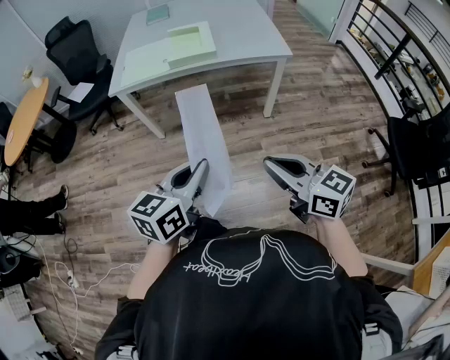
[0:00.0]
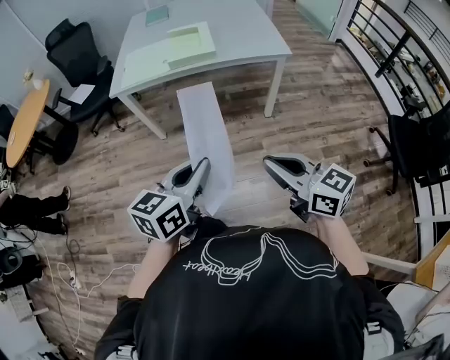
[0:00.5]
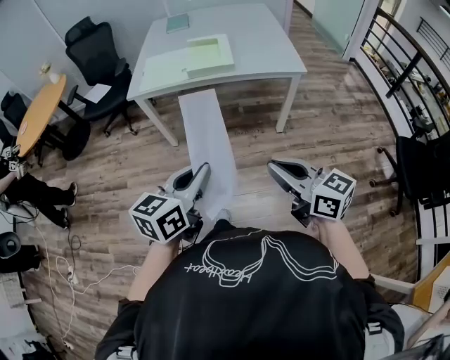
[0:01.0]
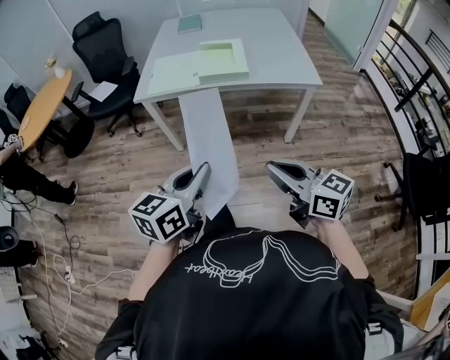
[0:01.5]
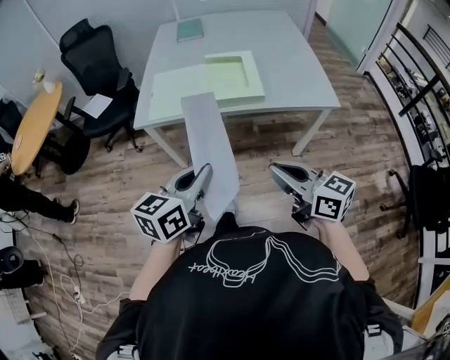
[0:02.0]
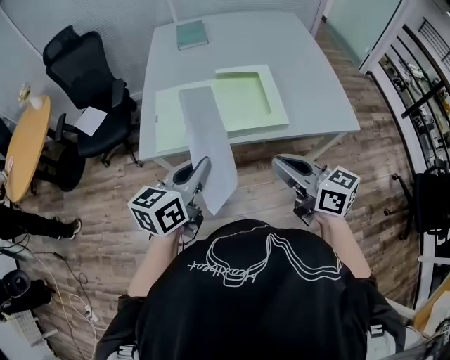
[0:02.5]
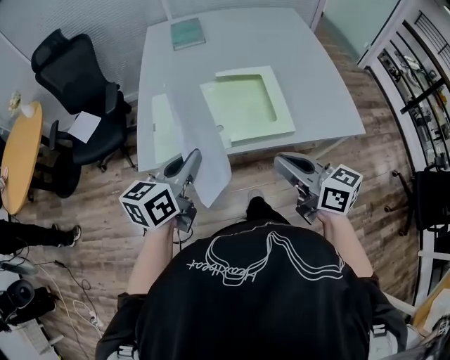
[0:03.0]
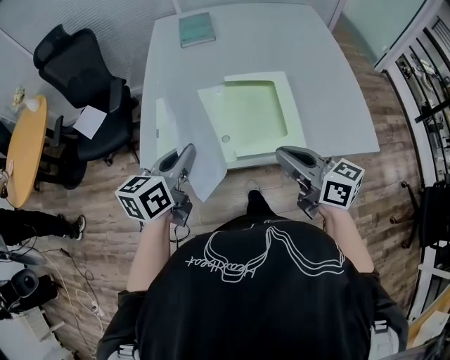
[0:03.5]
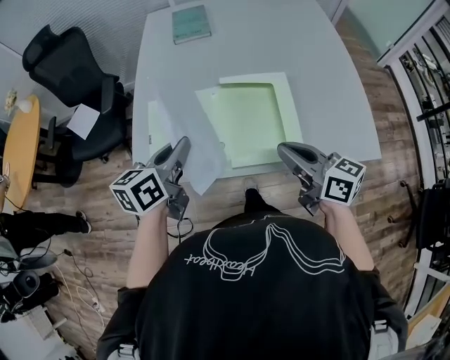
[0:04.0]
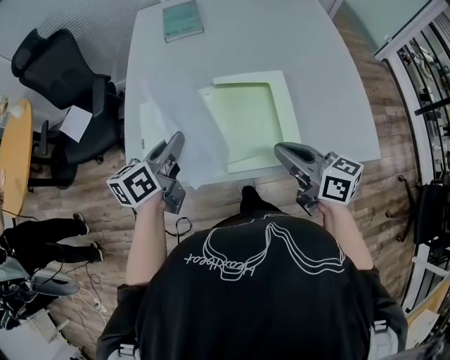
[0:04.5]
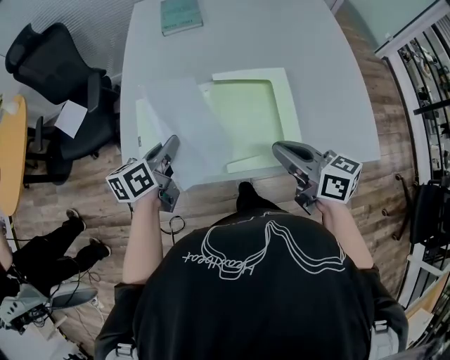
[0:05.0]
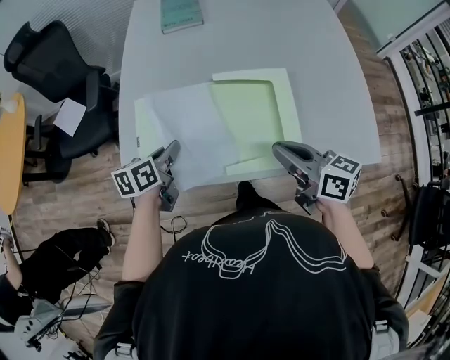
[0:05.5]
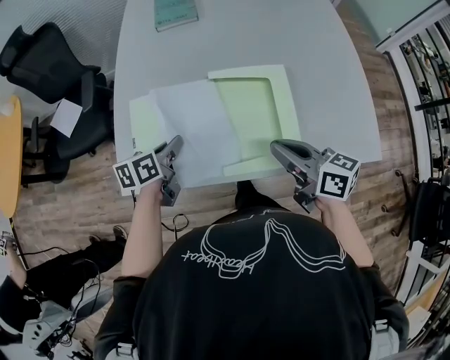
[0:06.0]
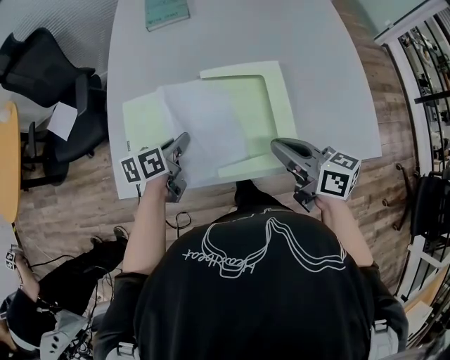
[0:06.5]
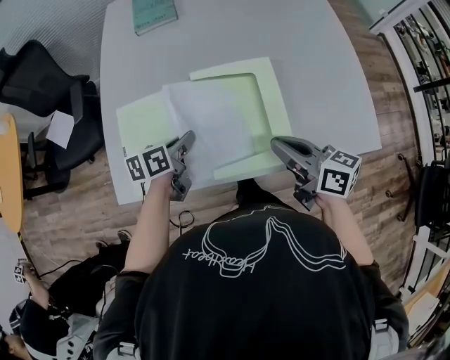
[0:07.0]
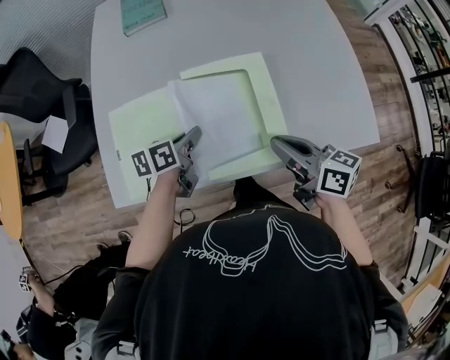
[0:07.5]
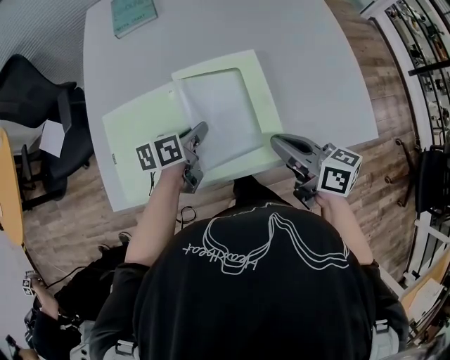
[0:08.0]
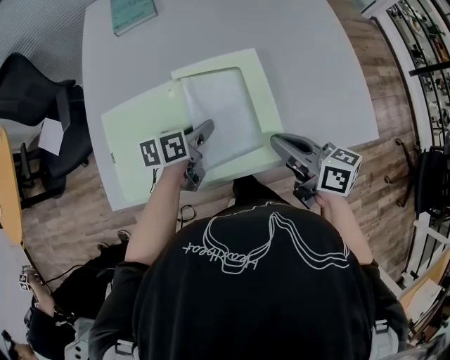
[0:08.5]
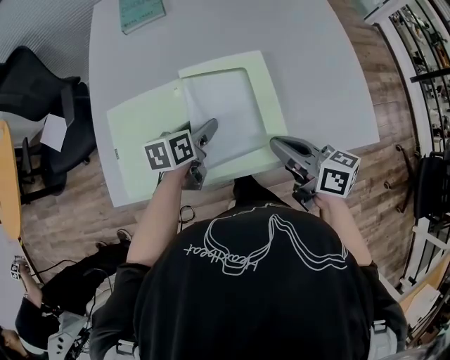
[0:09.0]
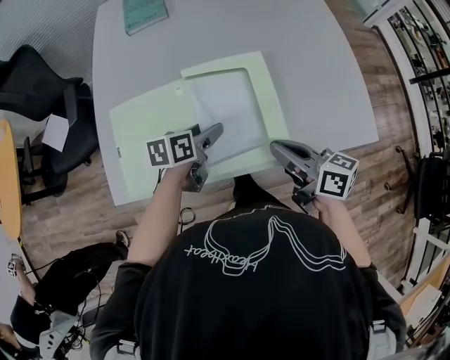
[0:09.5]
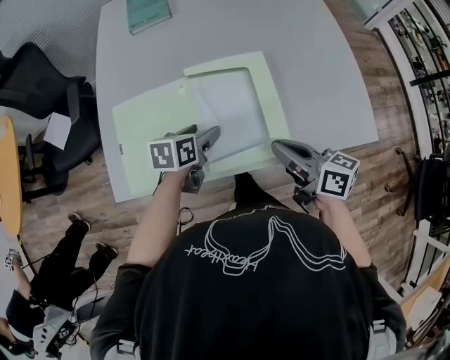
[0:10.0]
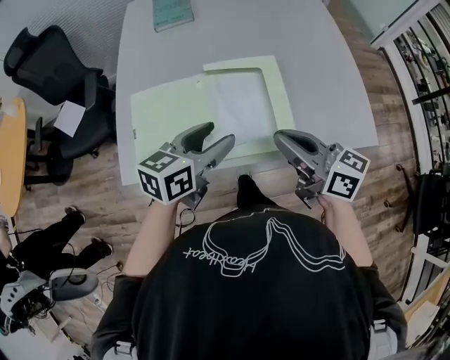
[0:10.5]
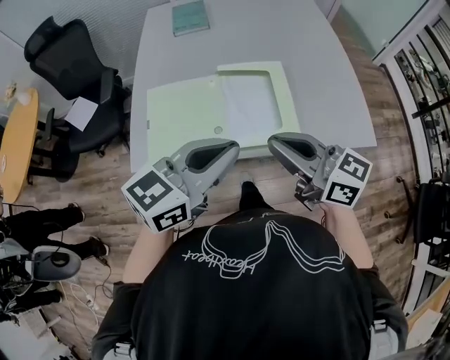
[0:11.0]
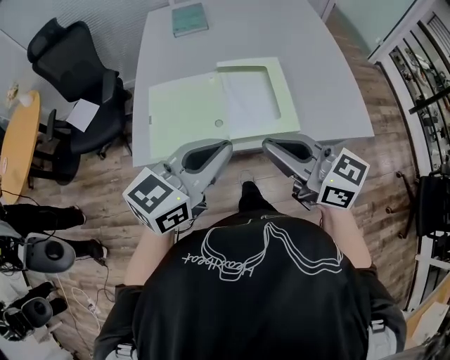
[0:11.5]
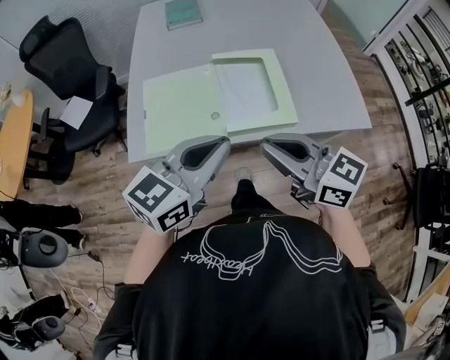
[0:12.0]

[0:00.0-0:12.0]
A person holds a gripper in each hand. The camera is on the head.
0:00.0 to 0:02.0: The right gripper shifts approximately 30 cm forward. The left gripper goes approximately 30 cm forward and to the left.
0:02.0 to 0:04.0: Both grippers move forward, roughly 40 cm.
0:04.0 to 0:06.0: The right gripper heads downward, covering some 5 cm. The left gripper travels downward and forward by some 15 cm.
0:06.0 to 0:08.0: The right gripper moves to the right, about 5 cm, while the left gripper is displaced to the right by about 15 cm.
0:08.0 to 0:10.0: The left gripper opens its fingers.
0:10.0 to 0:12.0: The right gripper moves backward, upward and to the left, approximately 25 cm, and rotates roughly 30 degrees. Meanwhile the left gripper moves upward and backward, about 35 cm, tilts its fingers roughly 30 degrees upward, and closes up.

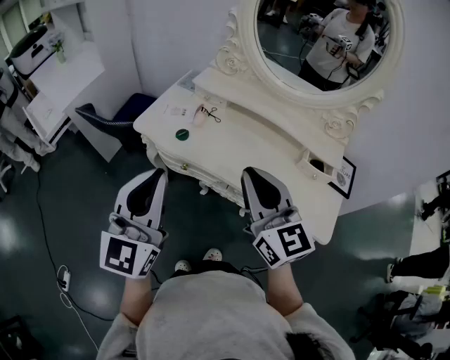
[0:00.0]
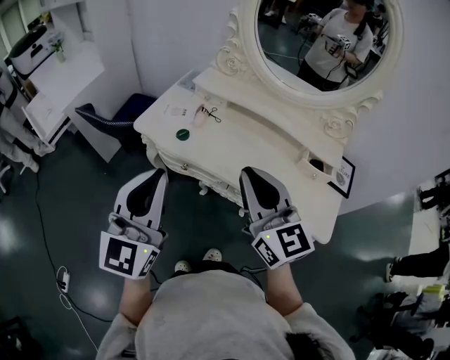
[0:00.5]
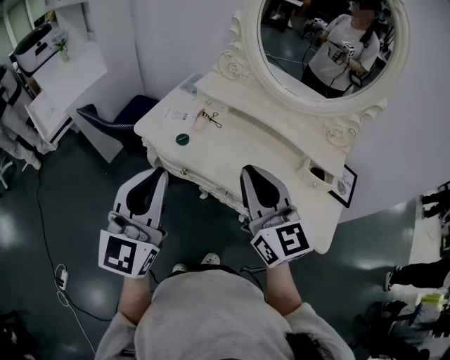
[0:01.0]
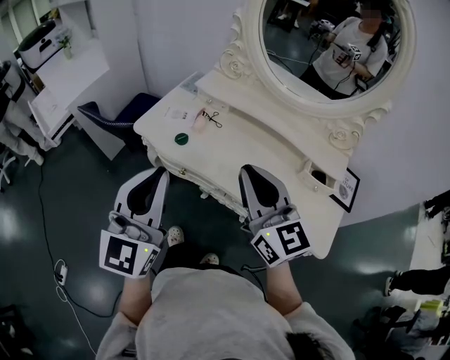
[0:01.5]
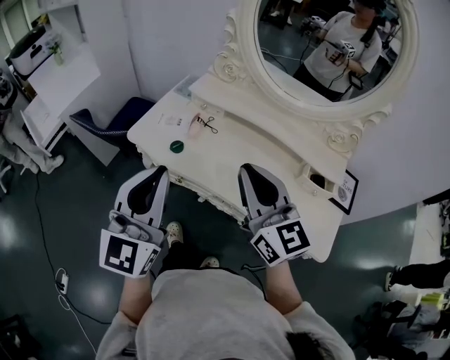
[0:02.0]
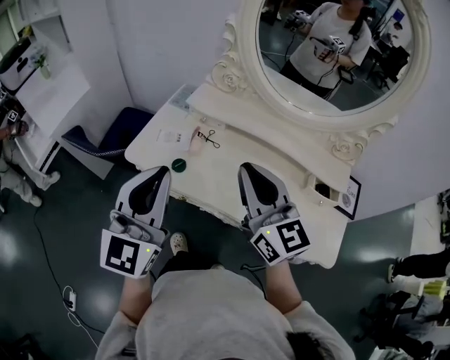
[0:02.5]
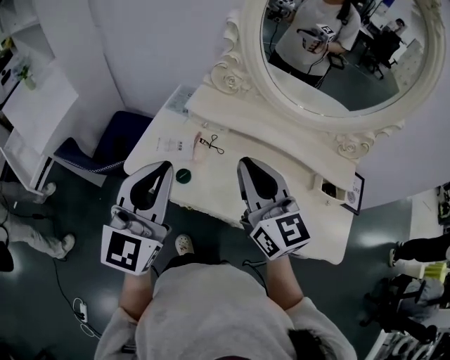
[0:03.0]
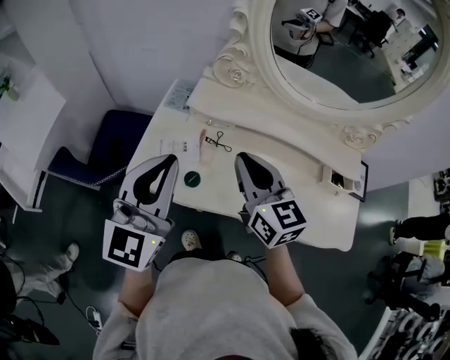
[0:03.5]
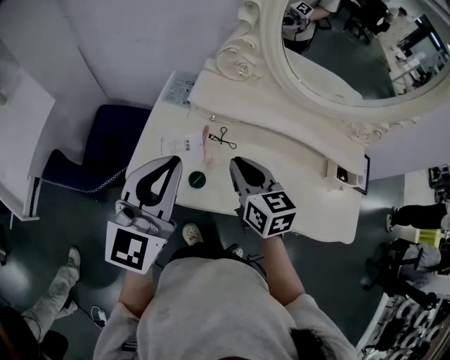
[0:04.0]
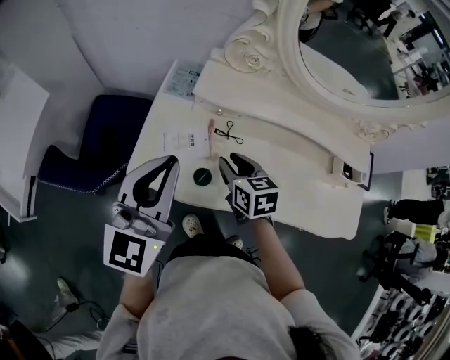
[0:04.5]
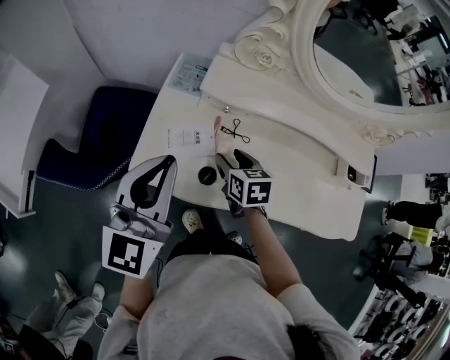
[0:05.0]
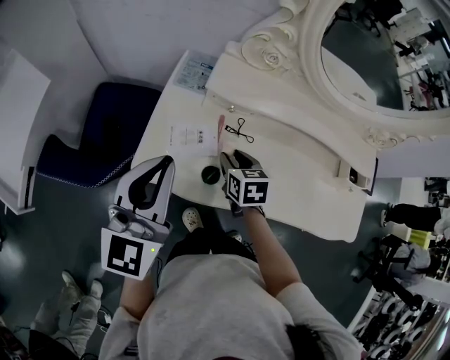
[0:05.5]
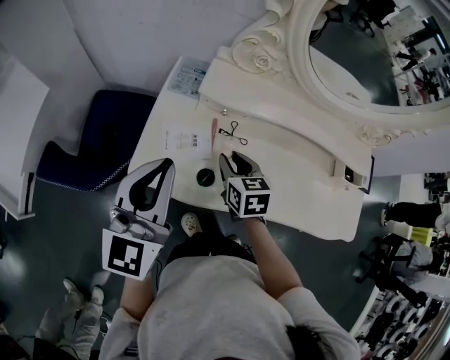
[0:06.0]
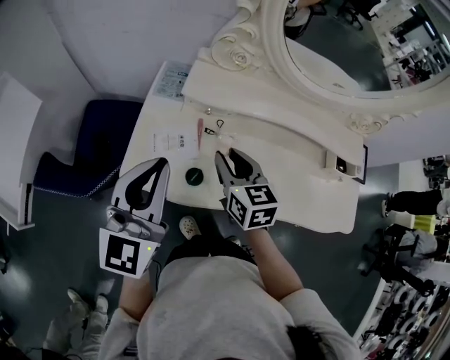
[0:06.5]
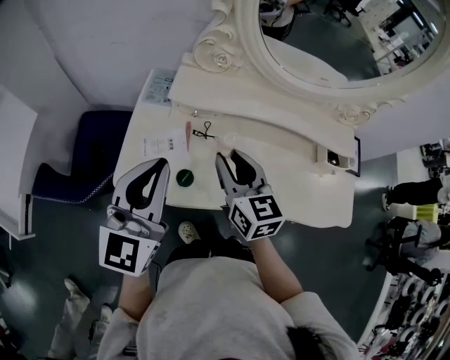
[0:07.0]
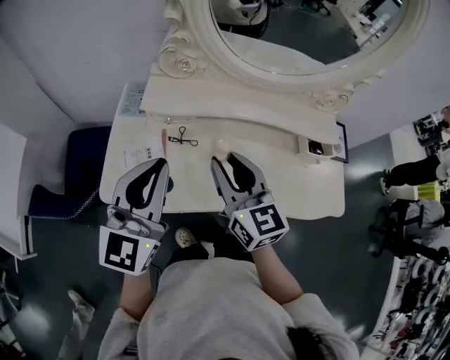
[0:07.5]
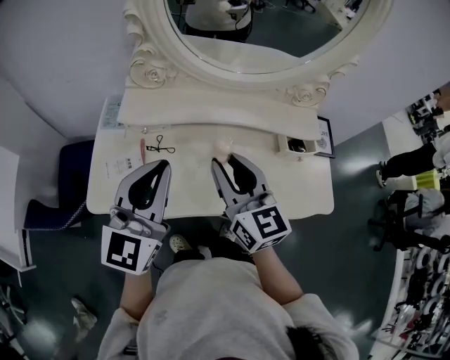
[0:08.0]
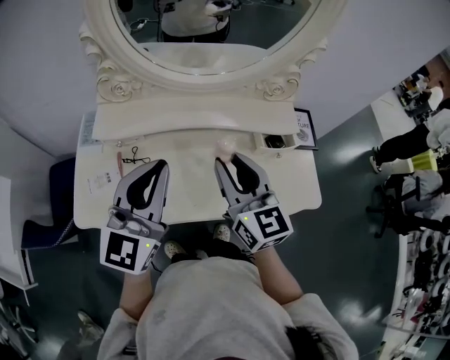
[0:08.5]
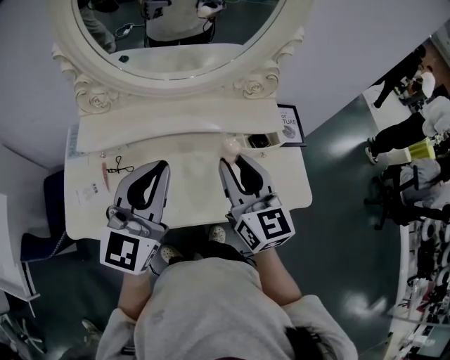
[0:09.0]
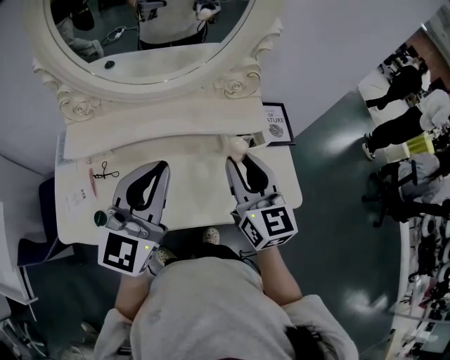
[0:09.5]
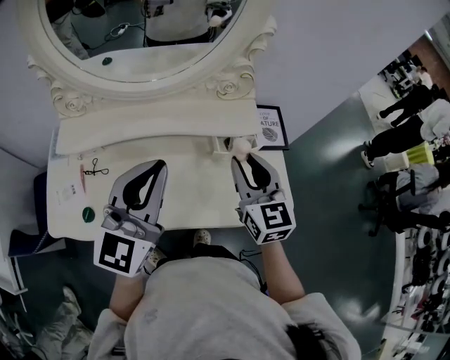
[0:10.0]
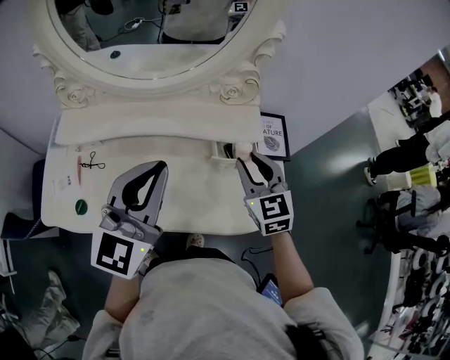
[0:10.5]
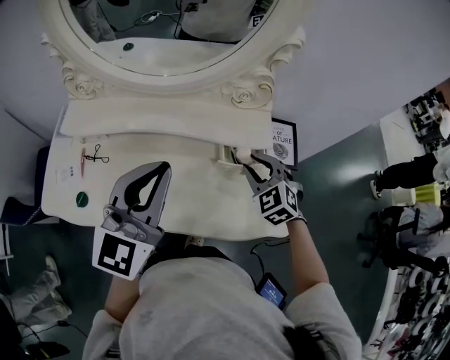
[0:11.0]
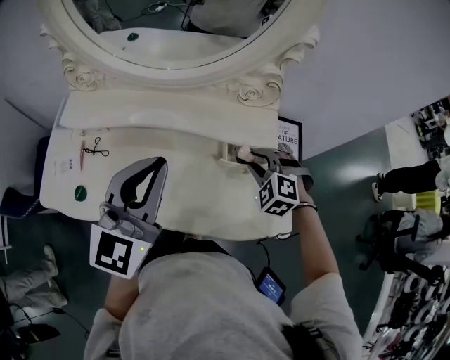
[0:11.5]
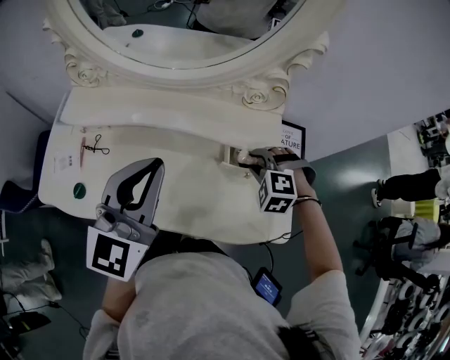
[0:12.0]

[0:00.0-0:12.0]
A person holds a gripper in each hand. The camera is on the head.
0:00.0 to 0:02.0: Both grippers travel together forward, approximately 5 cm.
0:02.0 to 0:04.0: The right gripper moves forward, downward and to the left, some 30 cm, and turns by approximately 40 degrees; the left gripper is displaced forward and to the left by about 25 cm, and swivels approximately 20 degrees.
0:04.0 to 0:06.0: The left gripper changes place by some 5 cm; the right gripper goes approximately 10 cm downward, and opens.
0:06.0 to 0:08.0: The left gripper moves to the right, some 20 cm. Meanwhile the right gripper is displaced upward and to the right by some 25 cm, and points its fingers roughly 30 degrees further upward.
0:08.0 to 0:10.0: The two grippers go some 25 cm to the right.
0:10.0 to 0:12.0: The right gripper travels downward and forward by roughly 20 cm, and tilts its fingers some 50 degrees downward.

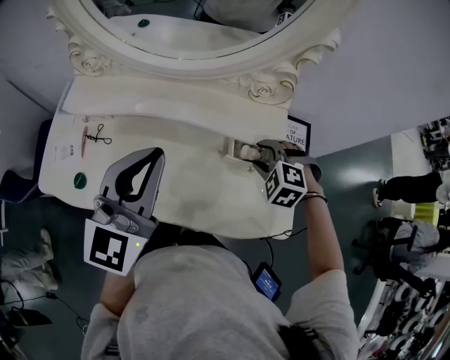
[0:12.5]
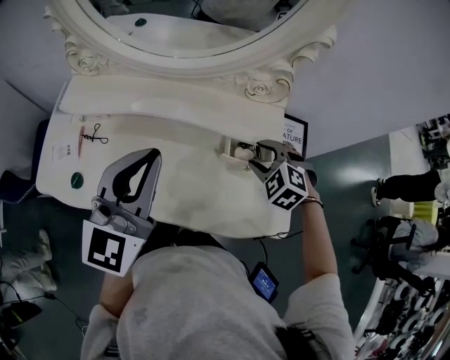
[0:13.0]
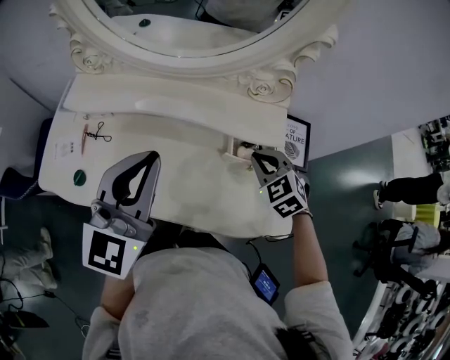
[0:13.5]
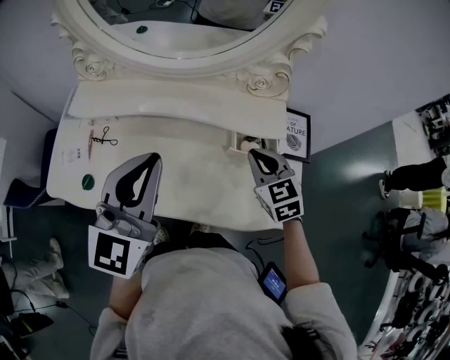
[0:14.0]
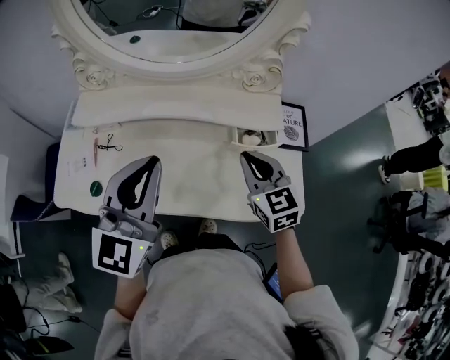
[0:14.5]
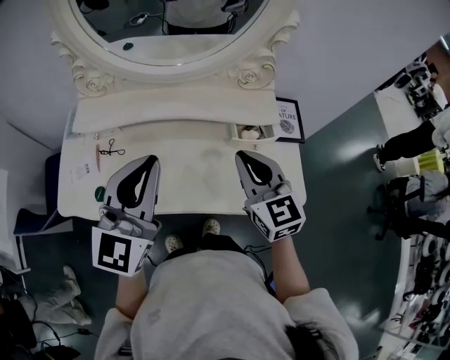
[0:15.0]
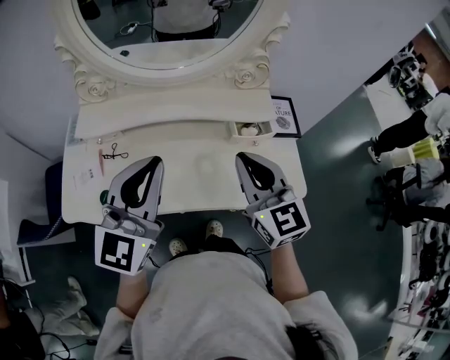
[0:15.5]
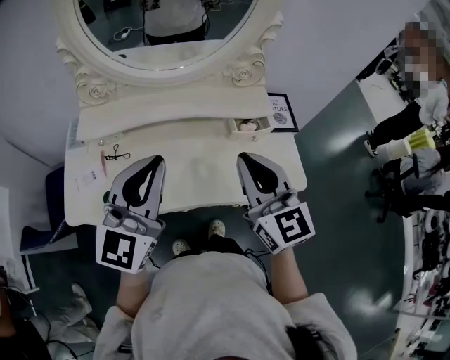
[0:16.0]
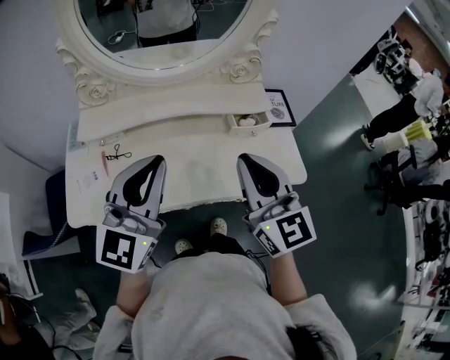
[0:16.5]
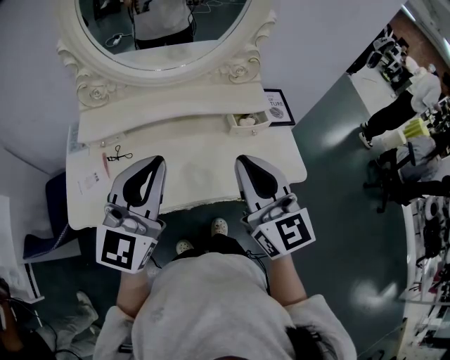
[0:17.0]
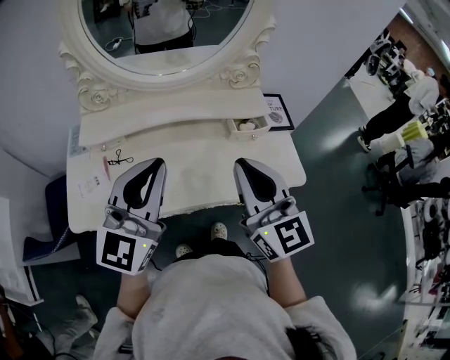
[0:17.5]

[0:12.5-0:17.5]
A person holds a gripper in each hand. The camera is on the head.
0:12.5 to 0:15.0: The right gripper is displaced upward, backward and to the left by some 20 cm, points its fingers about 50 degrees further upward, and closes its fingers. The left gripper goes some 5 cm backward.
0:15.0 to 0:17.5: The left gripper is displaced backward by approximately 5 cm; the right gripper travels backward, upward and to the left by approximately 15 cm.
